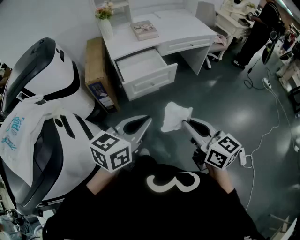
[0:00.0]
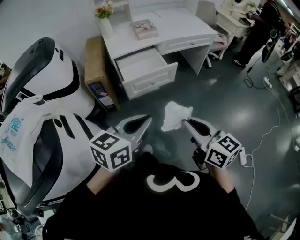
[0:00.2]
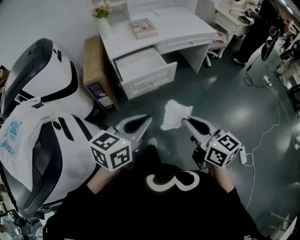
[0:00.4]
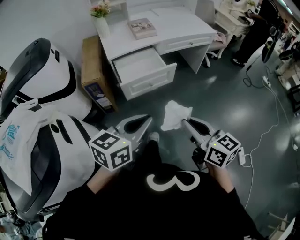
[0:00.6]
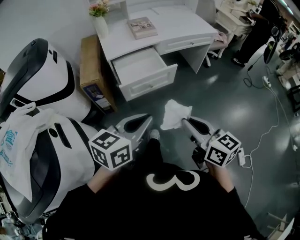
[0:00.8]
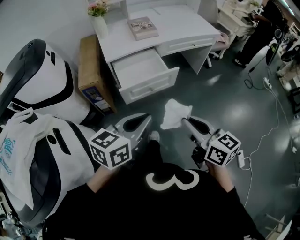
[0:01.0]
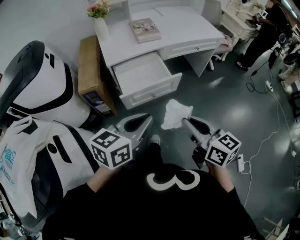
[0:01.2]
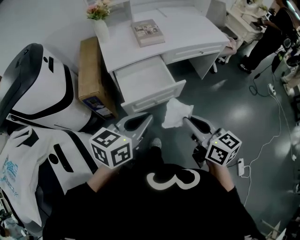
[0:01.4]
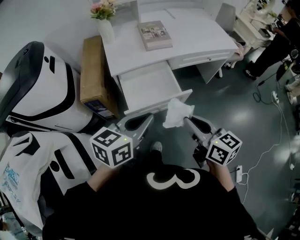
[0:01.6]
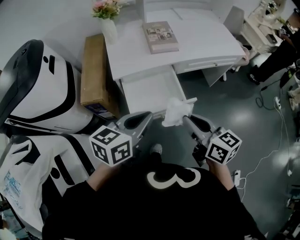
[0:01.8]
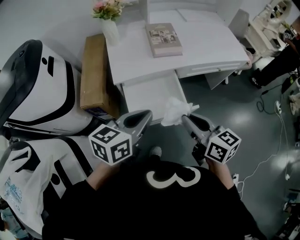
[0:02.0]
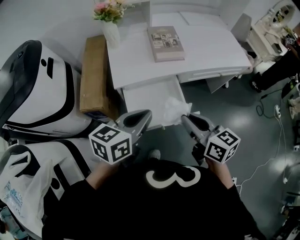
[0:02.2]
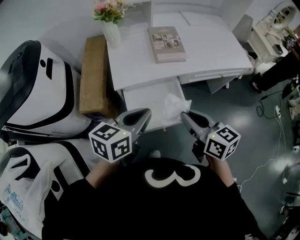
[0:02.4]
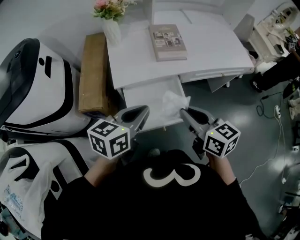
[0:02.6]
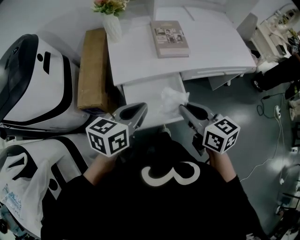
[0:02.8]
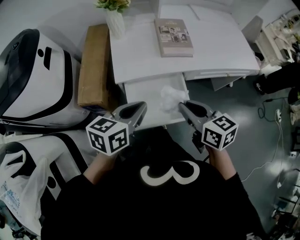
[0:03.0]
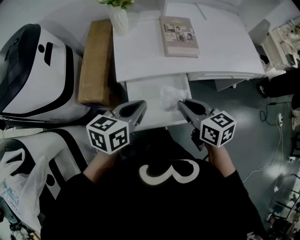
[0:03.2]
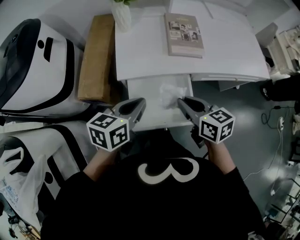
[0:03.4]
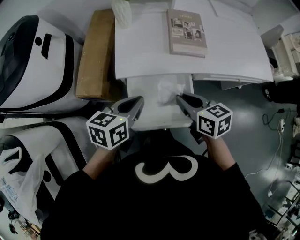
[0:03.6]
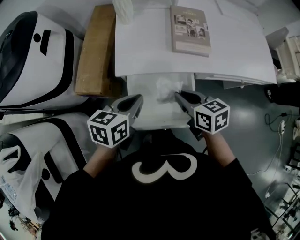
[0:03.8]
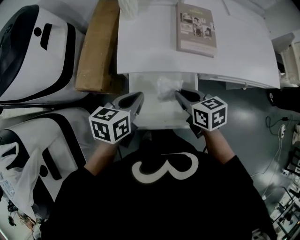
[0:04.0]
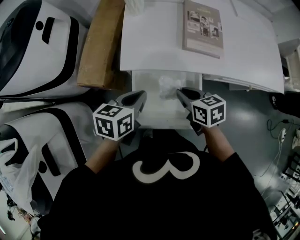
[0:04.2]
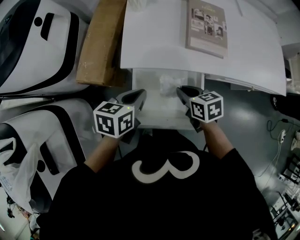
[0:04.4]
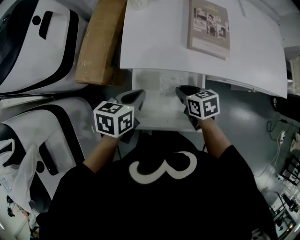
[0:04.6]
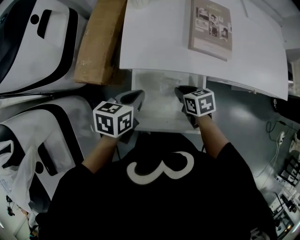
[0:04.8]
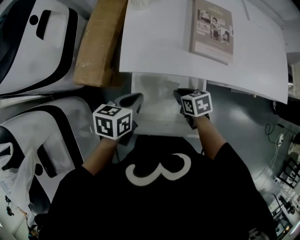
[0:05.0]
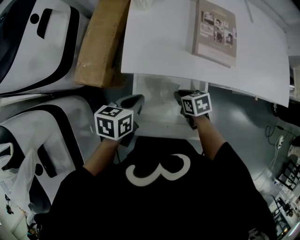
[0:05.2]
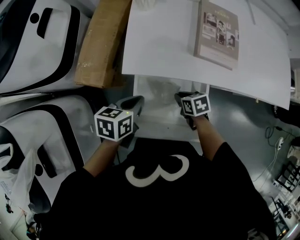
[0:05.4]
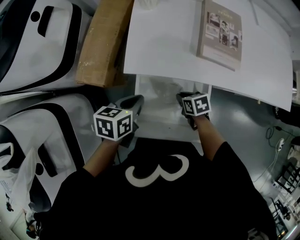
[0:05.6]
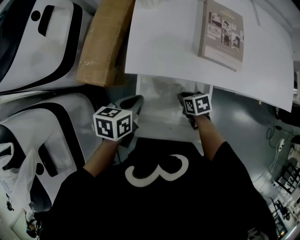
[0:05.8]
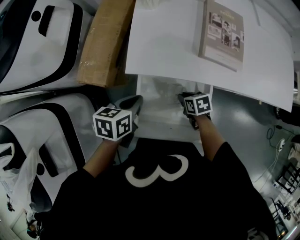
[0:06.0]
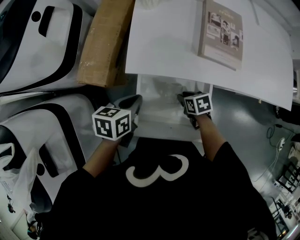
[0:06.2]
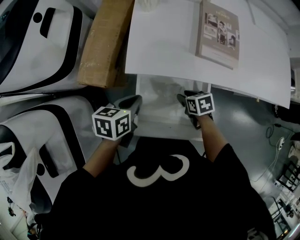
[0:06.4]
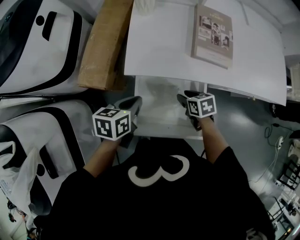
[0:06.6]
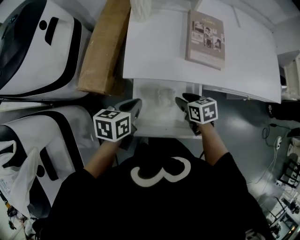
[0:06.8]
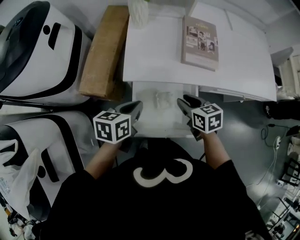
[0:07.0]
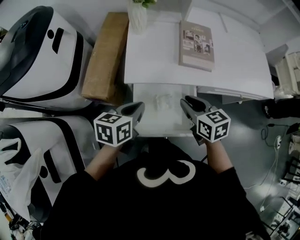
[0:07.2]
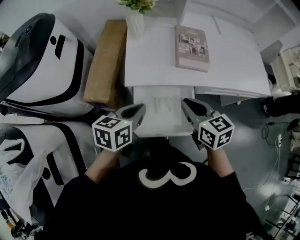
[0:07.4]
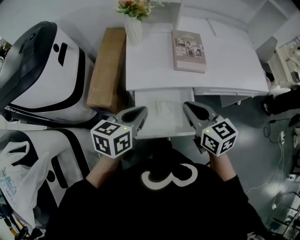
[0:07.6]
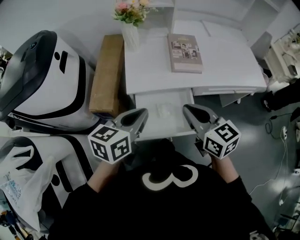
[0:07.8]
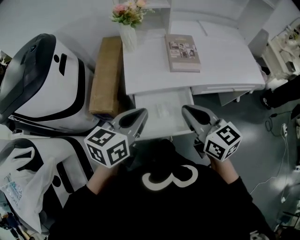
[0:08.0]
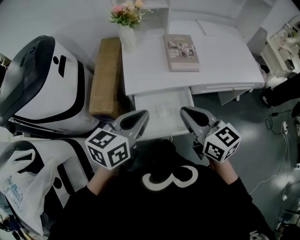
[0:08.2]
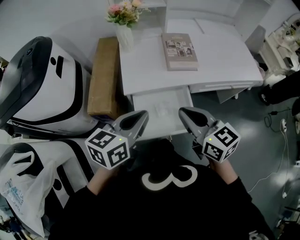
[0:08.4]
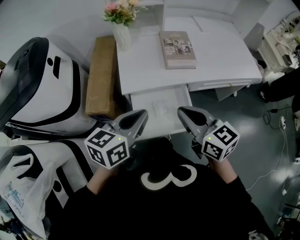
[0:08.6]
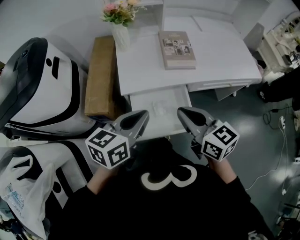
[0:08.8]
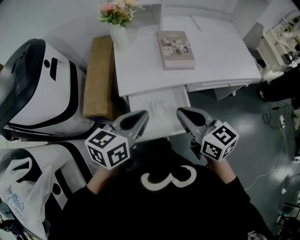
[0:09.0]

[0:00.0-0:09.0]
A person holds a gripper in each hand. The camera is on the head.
0:00.0 to 0:01.6: The grippers both shift forward by about 25 cm.
0:01.6 to 0:03.0: The grippers both shift forward by approximately 20 cm.
0:03.0 to 0:04.4: The grippers both shift downward and forward by some 20 cm. The left gripper changes its angle by about 20 degrees. Meanwhile the right gripper swivels roughly 30 degrees.
0:04.4 to 0:06.0: The right gripper goes approximately 15 cm downward, while the left gripper is displaced downward by about 5 cm.
0:06.0 to 0:07.6: The right gripper moves upward, approximately 35 cm, tilts its fingers about 40 degrees upward, and opens and closes again, while the left gripper travels upward by approximately 20 cm, and changes its angle by roughly 30 degrees.
0:07.6 to 0:09.0: The left gripper changes place by approximately 5 cm.

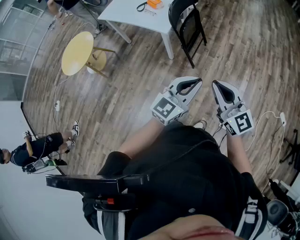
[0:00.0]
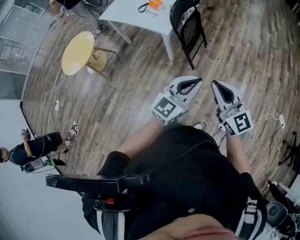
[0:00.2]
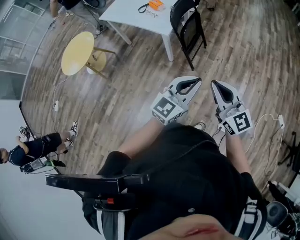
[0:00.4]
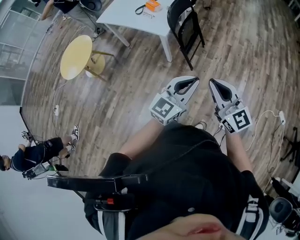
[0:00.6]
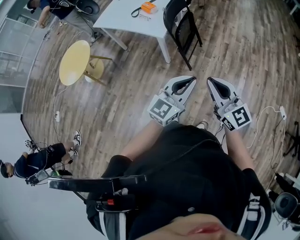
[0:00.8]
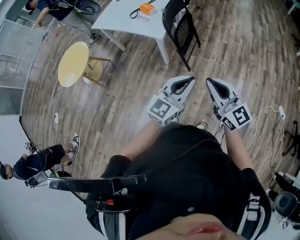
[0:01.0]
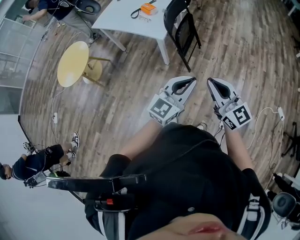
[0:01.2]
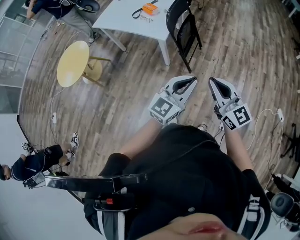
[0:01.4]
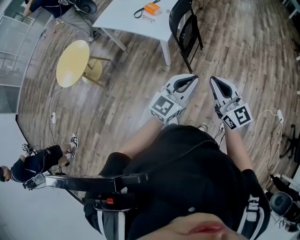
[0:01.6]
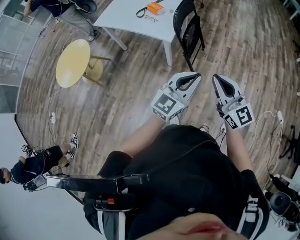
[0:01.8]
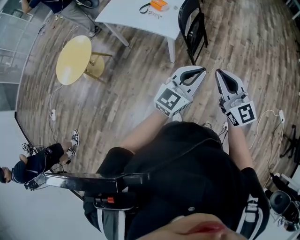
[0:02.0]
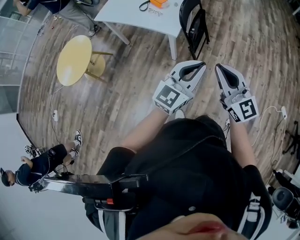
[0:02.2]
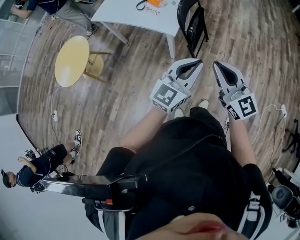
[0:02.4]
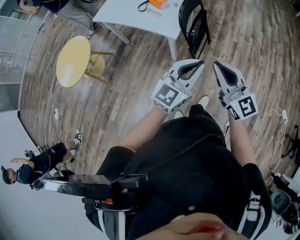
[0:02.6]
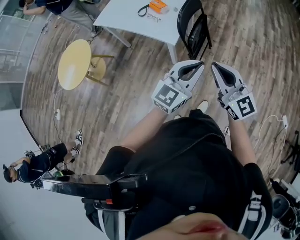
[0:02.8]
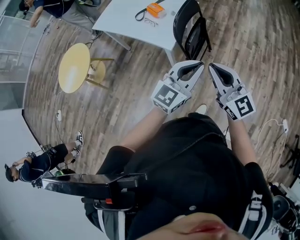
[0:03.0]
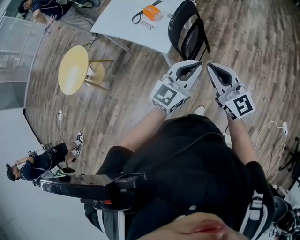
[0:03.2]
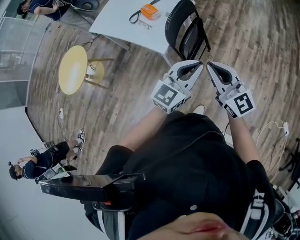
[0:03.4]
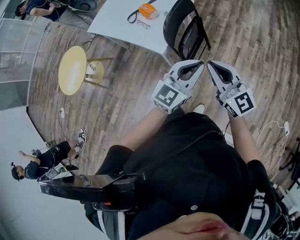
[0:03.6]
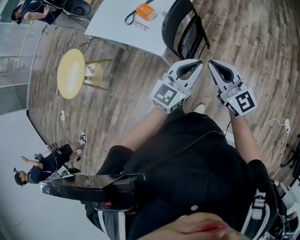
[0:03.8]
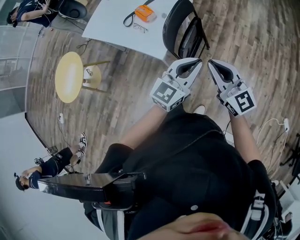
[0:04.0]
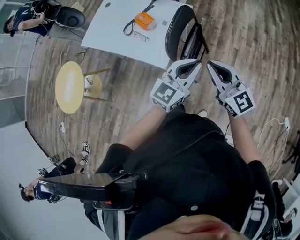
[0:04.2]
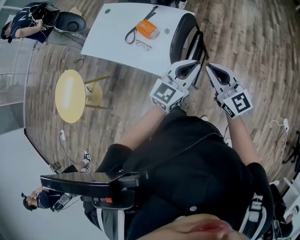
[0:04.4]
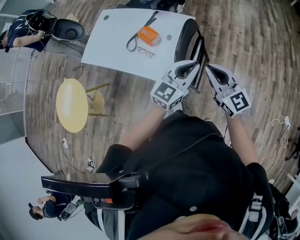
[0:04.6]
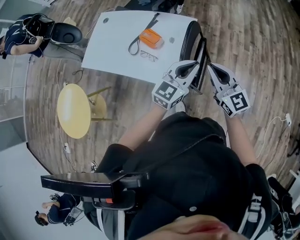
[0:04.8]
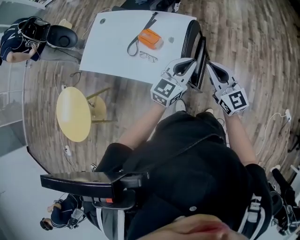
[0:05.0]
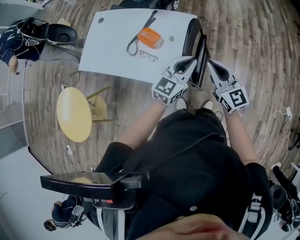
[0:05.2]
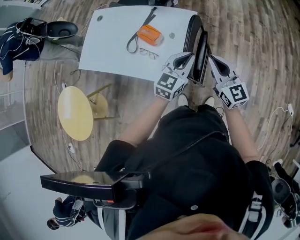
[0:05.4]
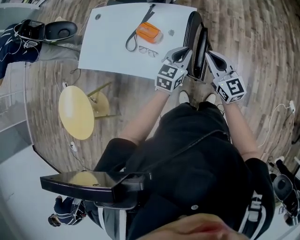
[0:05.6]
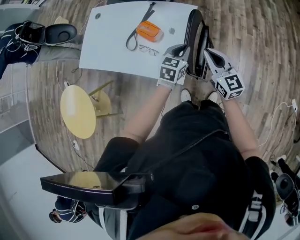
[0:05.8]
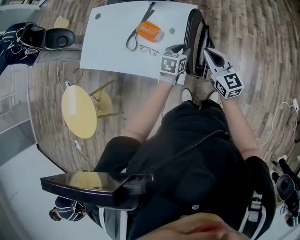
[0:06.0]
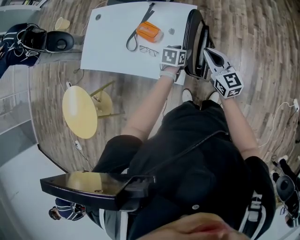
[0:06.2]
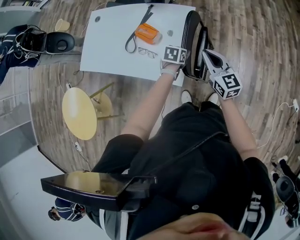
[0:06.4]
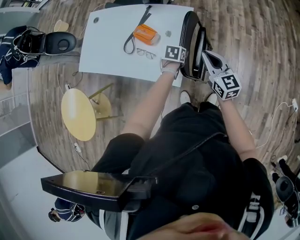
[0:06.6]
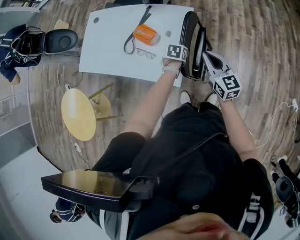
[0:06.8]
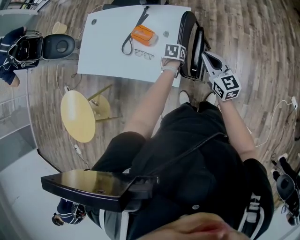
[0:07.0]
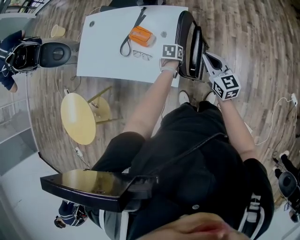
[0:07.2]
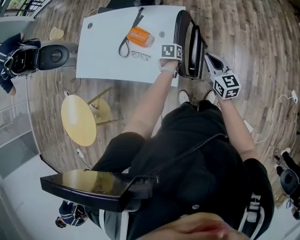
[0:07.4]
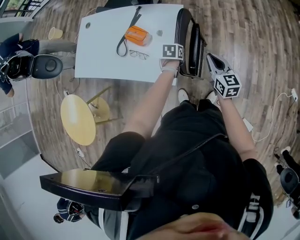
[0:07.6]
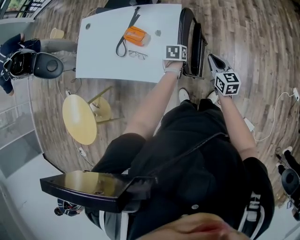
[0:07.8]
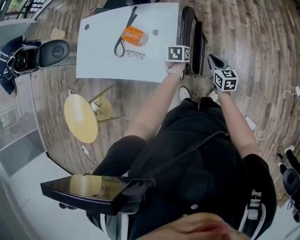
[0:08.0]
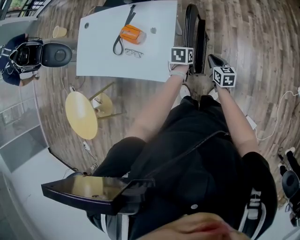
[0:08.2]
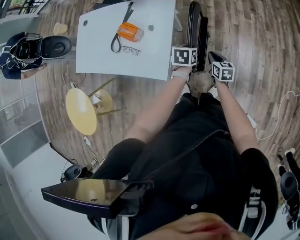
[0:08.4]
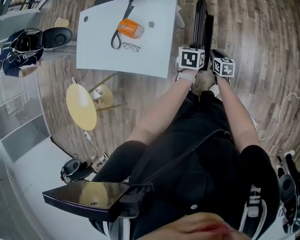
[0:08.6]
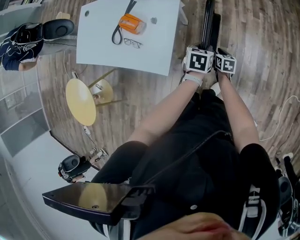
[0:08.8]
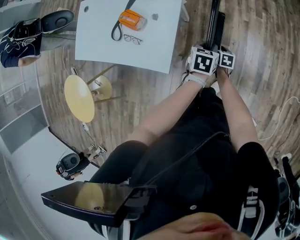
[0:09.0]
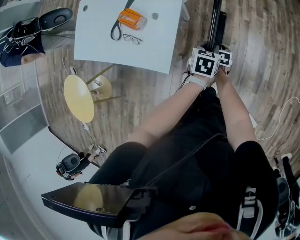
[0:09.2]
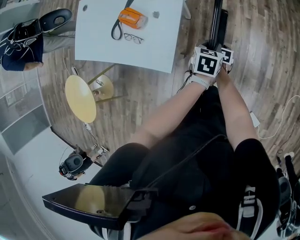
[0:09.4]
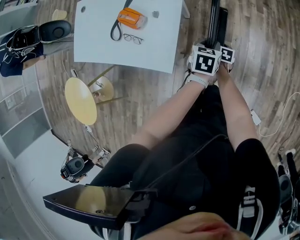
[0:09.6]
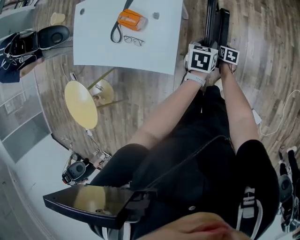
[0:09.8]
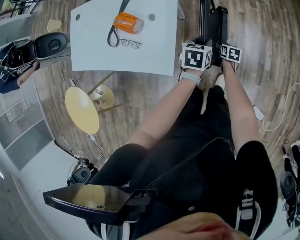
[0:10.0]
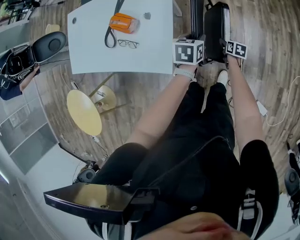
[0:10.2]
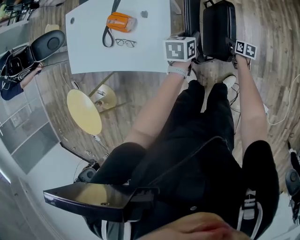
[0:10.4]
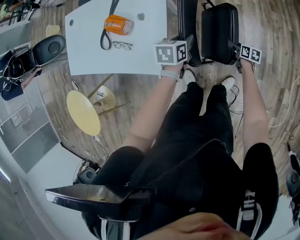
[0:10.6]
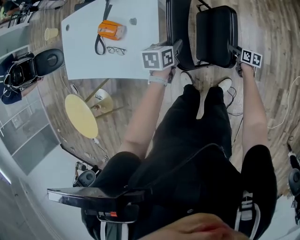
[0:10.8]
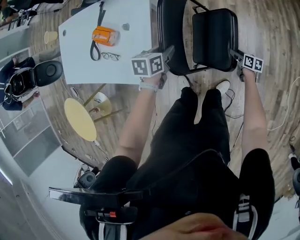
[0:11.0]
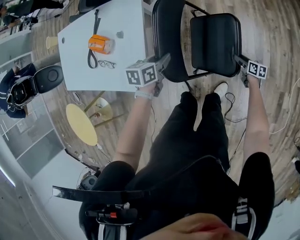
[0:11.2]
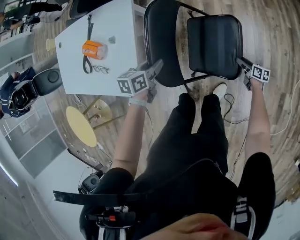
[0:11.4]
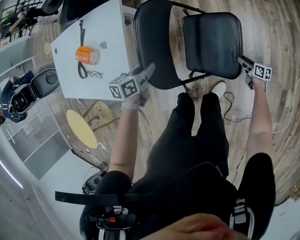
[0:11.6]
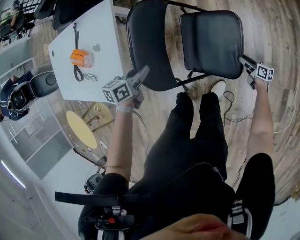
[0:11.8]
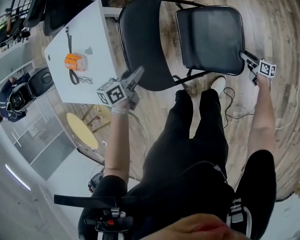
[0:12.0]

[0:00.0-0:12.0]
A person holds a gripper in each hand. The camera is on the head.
0:00.0 to 0:01.6: The two grippers go roughly 10 cm to the left and forward.
0:01.6 to 0:03.0: Both grippers move forward, approximately 20 cm.
0:03.0 to 0:04.4: The two grippers go approximately 25 cm forward.
0:04.4 to 0:06.0: The left gripper heads downward, forward and to the left, covering approximately 30 cm, tips its fingers downward by roughly 40 degrees, and opens; the right gripper goes roughly 20 cm forward, downward and to the left, and changes its angle by about 20 degrees.
0:06.0 to 0:07.6: The right gripper moves to the right and downward, roughly 10 cm, while the left gripper goes about 10 cm downward, rotates some 20 degrees, and opens, then closes again.
0:07.6 to 0:09.0: The right gripper heads downward, covering about 25 cm, swivels approximately 40 degrees, and opens its fingers; the left gripper moves to the right, approximately 20 cm.
0:09.0 to 0:10.4: The left gripper shifts approximately 5 cm to the left; the right gripper shifts approximately 15 cm to the right and downward.
0:10.4 to 0:12.0: The right gripper moves to the right and downward, about 35 cm, and turns by approximately 30 degrees, while the left gripper goes roughly 15 cm downward.

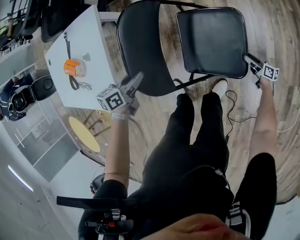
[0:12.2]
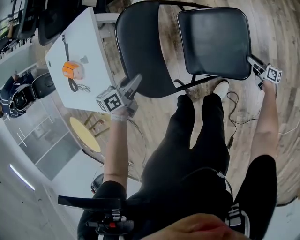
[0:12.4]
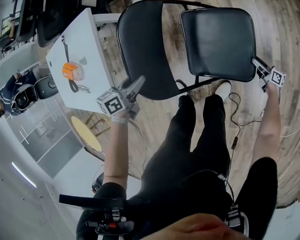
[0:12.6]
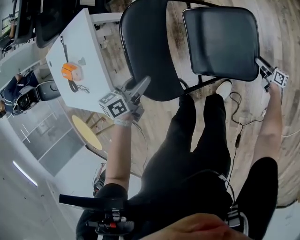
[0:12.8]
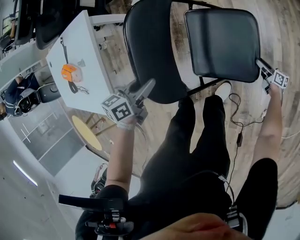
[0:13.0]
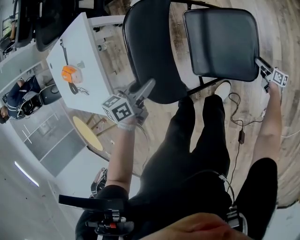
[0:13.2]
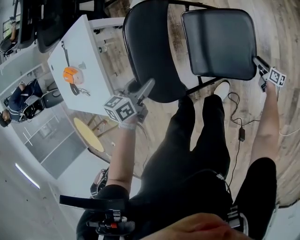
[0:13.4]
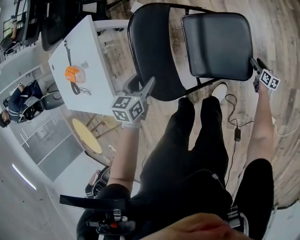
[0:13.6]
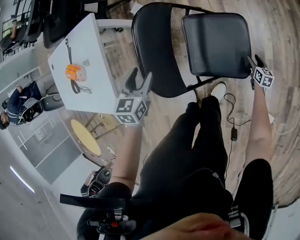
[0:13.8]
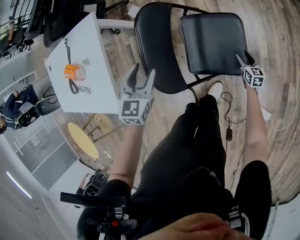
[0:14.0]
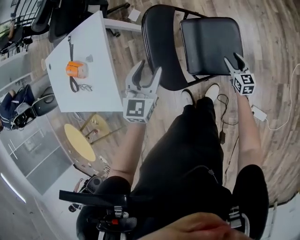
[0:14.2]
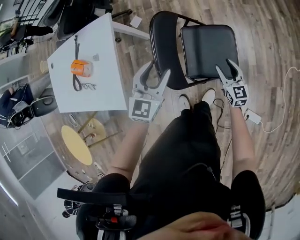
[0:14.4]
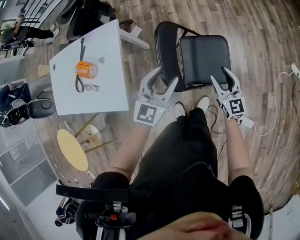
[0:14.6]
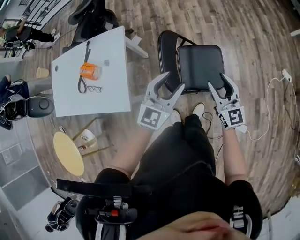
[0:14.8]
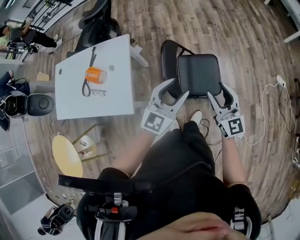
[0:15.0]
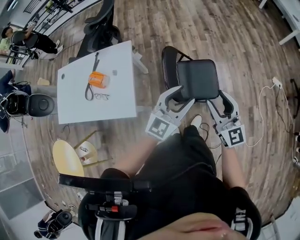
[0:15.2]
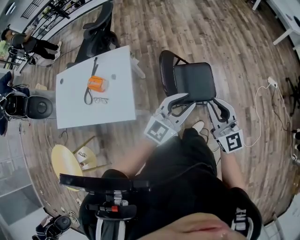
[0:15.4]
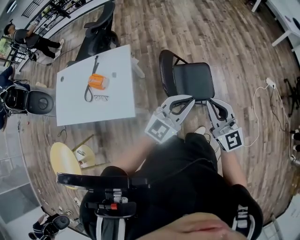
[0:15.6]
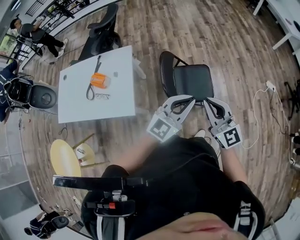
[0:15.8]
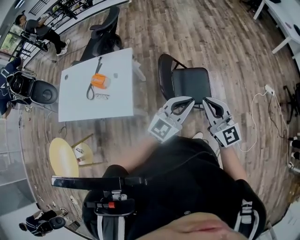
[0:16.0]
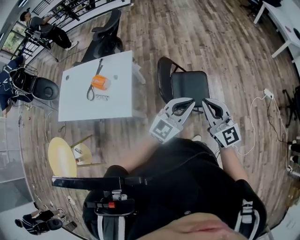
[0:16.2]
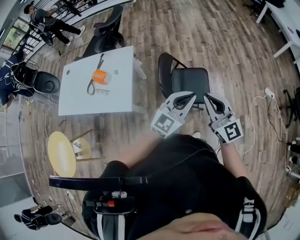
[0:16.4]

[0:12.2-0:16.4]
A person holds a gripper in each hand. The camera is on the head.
0:12.2 to 0:13.6: Both grippers move to the right, about 10 cm. The left gripper rotates some 30 degrees, and opens its fingers; the right gripper swivels approximately 20 degrees.
0:13.6 to 0:15.0: The right gripper is displaced upward and to the left by roughly 70 cm, and angles its fingers upward, by approximately 40 degrees. Meanwhile the left gripper travels upward by some 35 cm, and angles its fingers upward, by approximately 50 degrees.
0:15.0 to 0:16.4: The left gripper shifts about 15 cm to the right, upward and backward, and closes up, while the right gripper goes some 20 cm upward and backward, and closes its fingers.